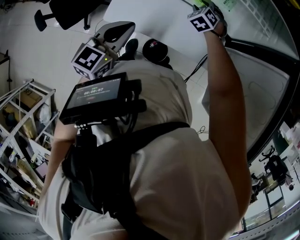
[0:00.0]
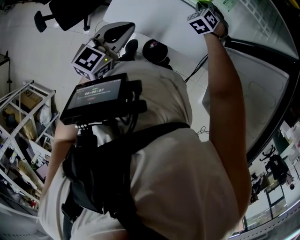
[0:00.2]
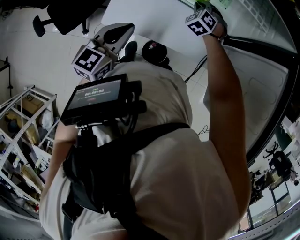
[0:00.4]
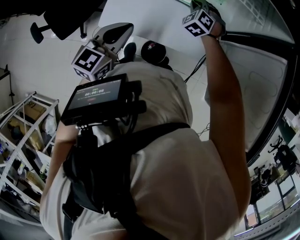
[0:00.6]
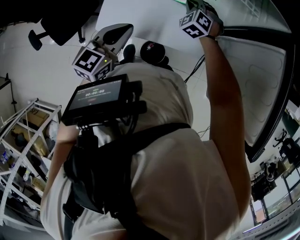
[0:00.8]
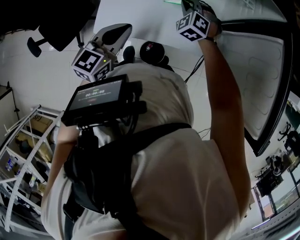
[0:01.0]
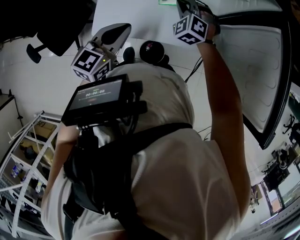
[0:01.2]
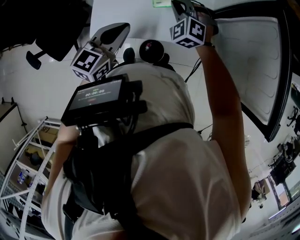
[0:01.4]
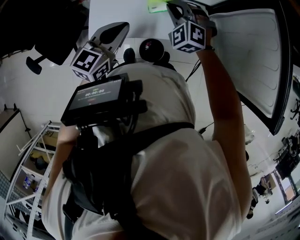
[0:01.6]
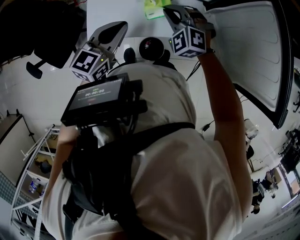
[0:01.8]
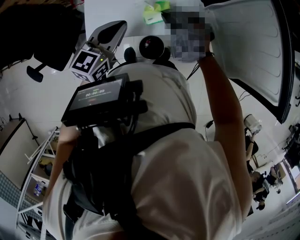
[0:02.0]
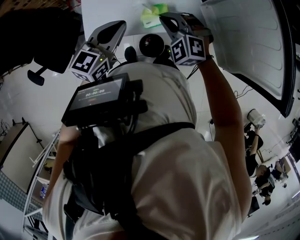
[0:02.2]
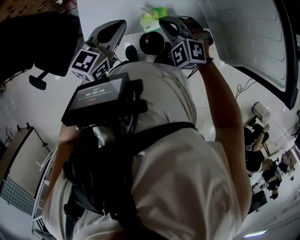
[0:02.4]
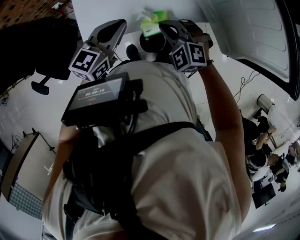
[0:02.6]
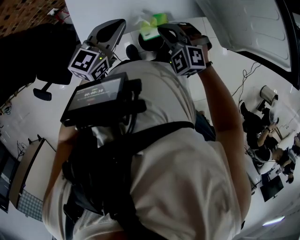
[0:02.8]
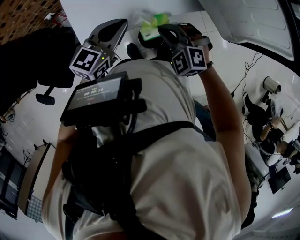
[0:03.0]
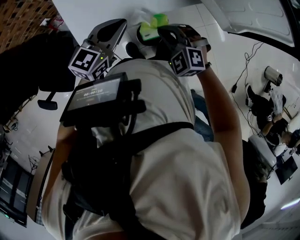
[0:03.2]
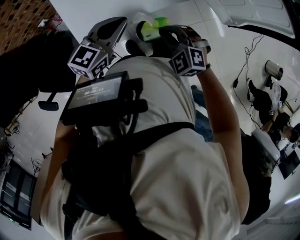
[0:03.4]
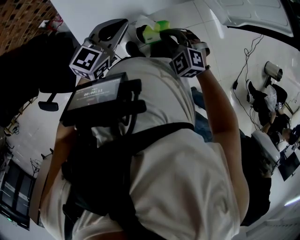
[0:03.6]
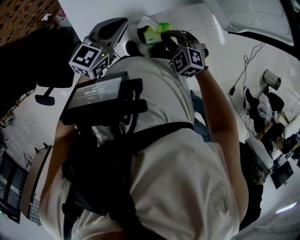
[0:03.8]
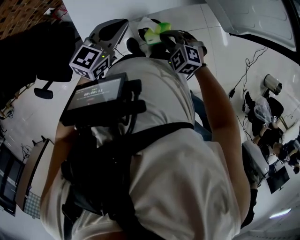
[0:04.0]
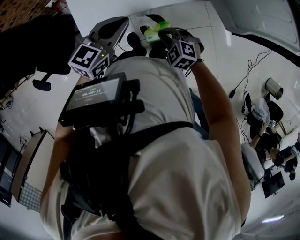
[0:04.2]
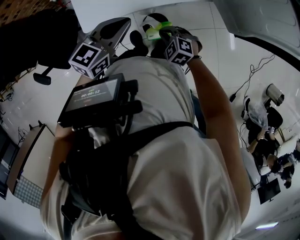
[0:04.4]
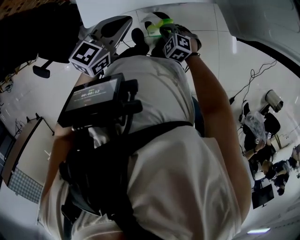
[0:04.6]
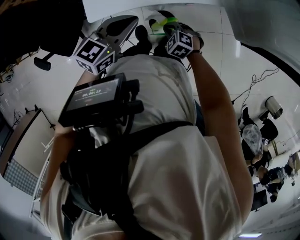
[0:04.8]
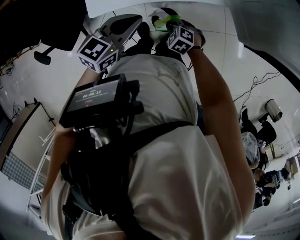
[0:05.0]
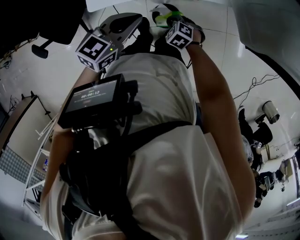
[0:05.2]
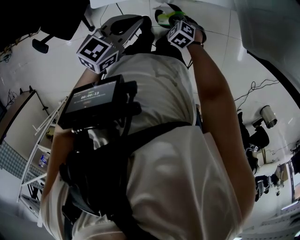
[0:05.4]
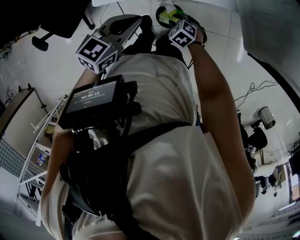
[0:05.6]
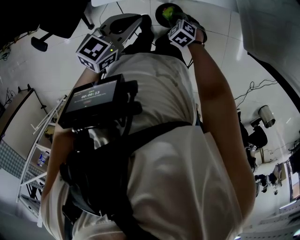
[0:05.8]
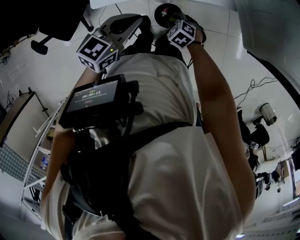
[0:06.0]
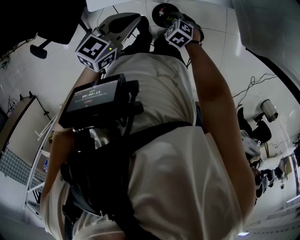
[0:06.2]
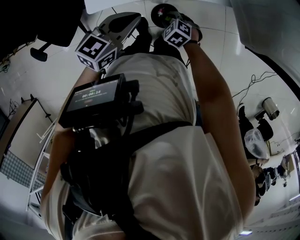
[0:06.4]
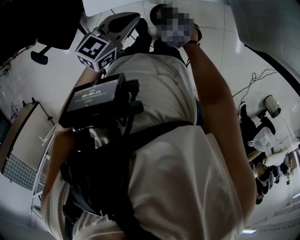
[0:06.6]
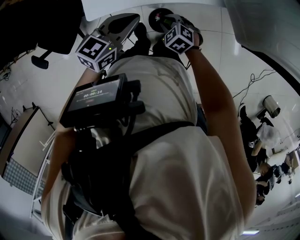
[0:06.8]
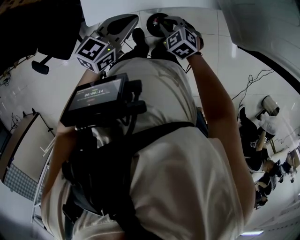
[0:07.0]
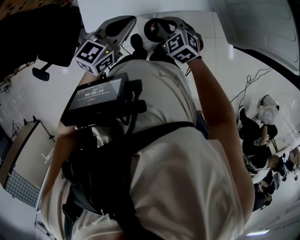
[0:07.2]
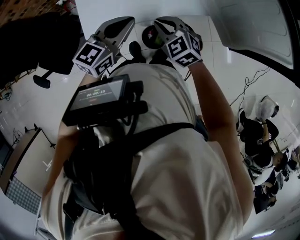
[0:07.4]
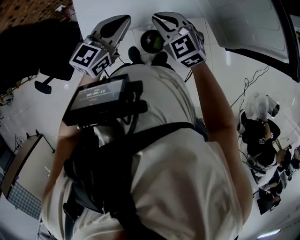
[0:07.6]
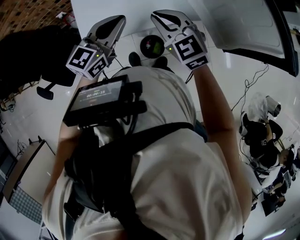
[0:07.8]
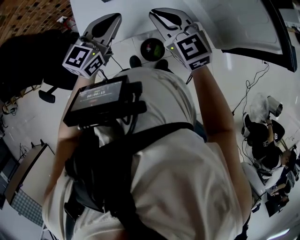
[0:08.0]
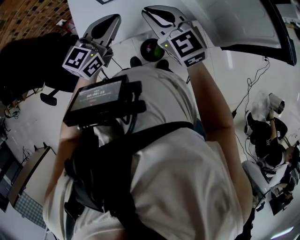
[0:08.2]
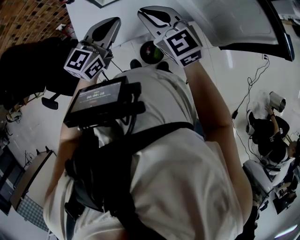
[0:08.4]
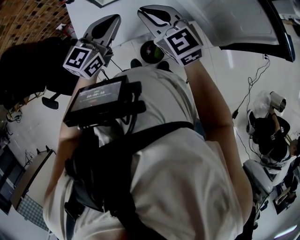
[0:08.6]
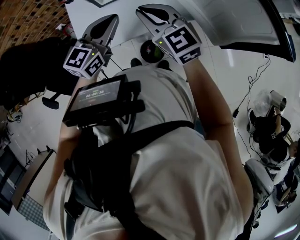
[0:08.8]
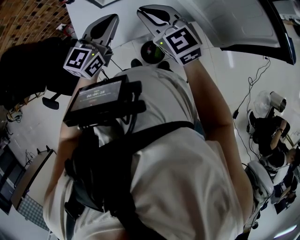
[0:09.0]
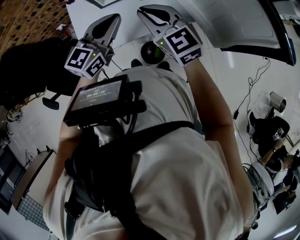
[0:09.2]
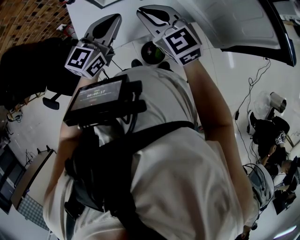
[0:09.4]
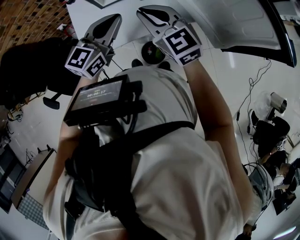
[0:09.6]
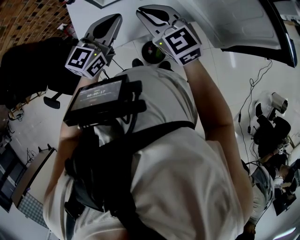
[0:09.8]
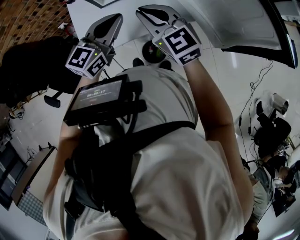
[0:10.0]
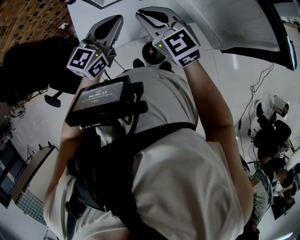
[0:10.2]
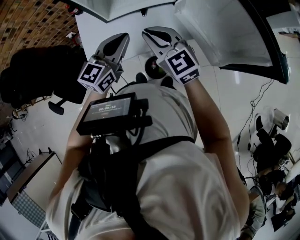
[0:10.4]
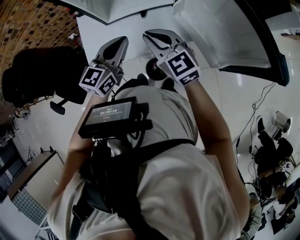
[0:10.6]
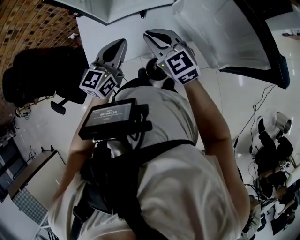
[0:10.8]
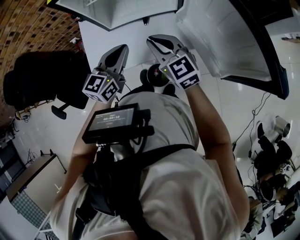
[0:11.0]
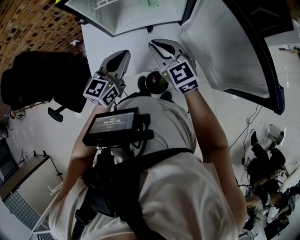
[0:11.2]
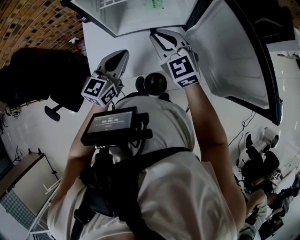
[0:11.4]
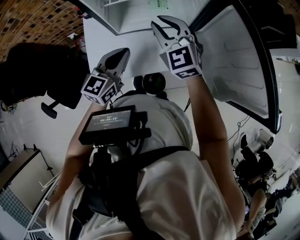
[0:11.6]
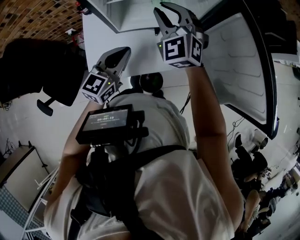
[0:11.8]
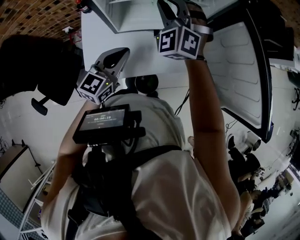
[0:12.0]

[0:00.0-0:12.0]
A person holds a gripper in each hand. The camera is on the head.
0:00.0 to 0:01.6: The right gripper is displaced backward and upward by some 20 cm, and closes up.
0:01.6 to 0:03.0: The right gripper heads backward, covering some 20 cm. Meanwhile the left gripper heads to the right, covering roughly 5 cm, and turns by about 20 degrees.
0:03.0 to 0:04.4: The left gripper moves backward, some 5 cm. Meanwhile the right gripper shifts roughly 15 cm downward and backward, and rotates roughly 20 degrees.
0:04.4 to 0:06.0: The left gripper moves roughly 5 cm; the right gripper travels downward by about 10 cm, and opens.
0:06.0 to 0:07.6: The left gripper shifts some 15 cm forward and upward, while the right gripper travels upward by roughly 30 cm, points its fingers some 30 degrees further upward, and closes its fingers.
0:07.6 to 0:09.0: The left gripper changes place by about 5 cm; the right gripper moves upward, roughly 10 cm.
0:09.0 to 0:10.4: There are only small adjustments of the grippers.
0:10.4 to 0:12.0: The left gripper goes some 10 cm forward and to the left; the right gripper moves forward, approximately 25 cm, and rotates around the line of its fingers by about 50 degrees, counterclockwise from behind.

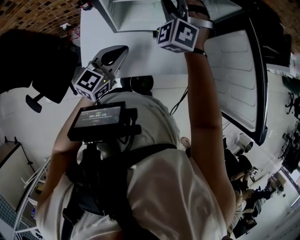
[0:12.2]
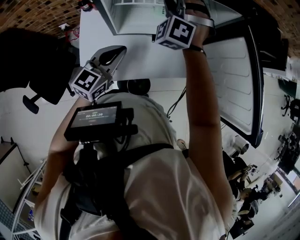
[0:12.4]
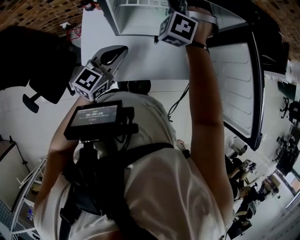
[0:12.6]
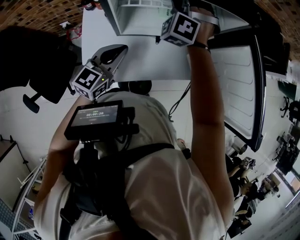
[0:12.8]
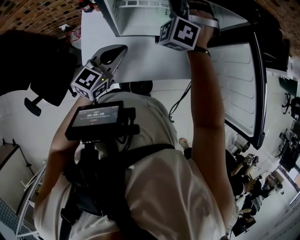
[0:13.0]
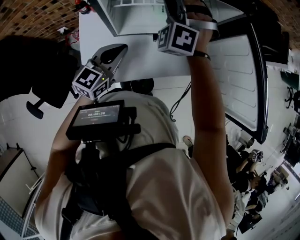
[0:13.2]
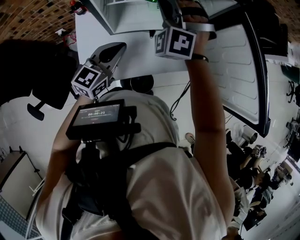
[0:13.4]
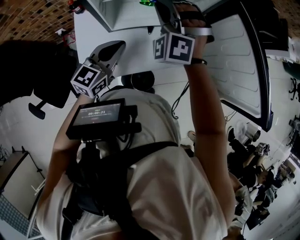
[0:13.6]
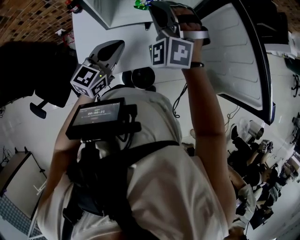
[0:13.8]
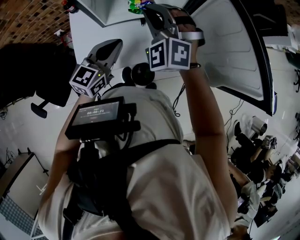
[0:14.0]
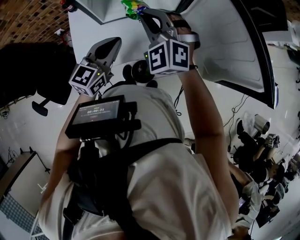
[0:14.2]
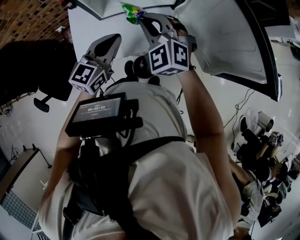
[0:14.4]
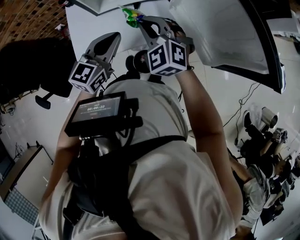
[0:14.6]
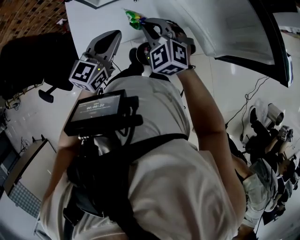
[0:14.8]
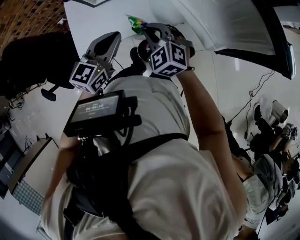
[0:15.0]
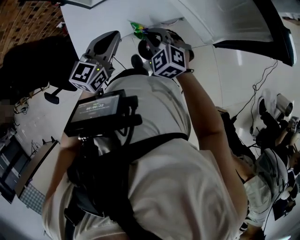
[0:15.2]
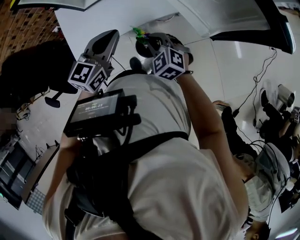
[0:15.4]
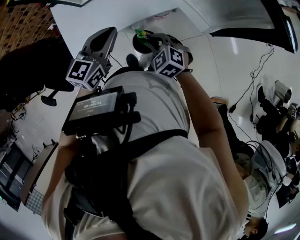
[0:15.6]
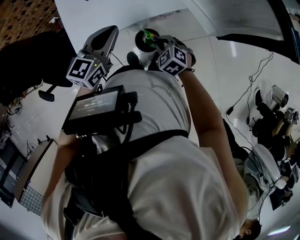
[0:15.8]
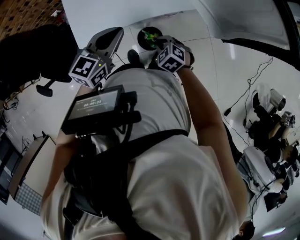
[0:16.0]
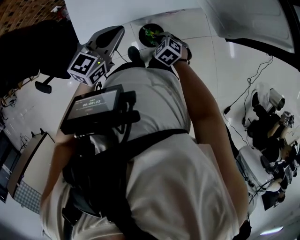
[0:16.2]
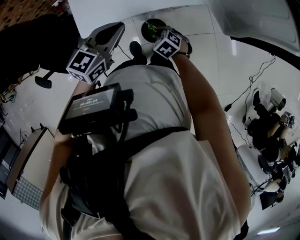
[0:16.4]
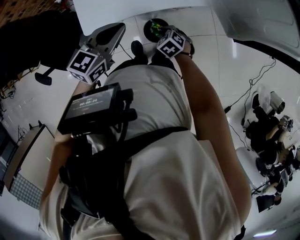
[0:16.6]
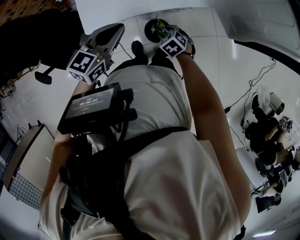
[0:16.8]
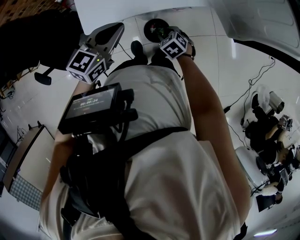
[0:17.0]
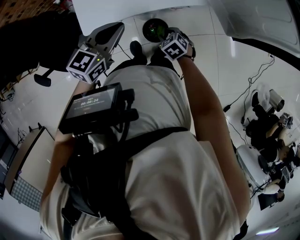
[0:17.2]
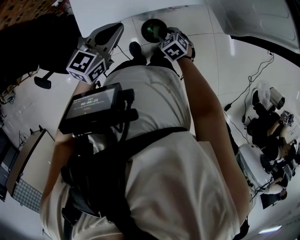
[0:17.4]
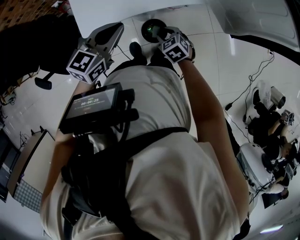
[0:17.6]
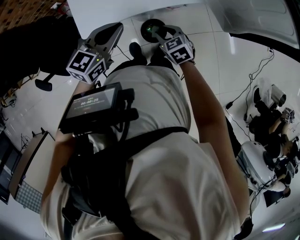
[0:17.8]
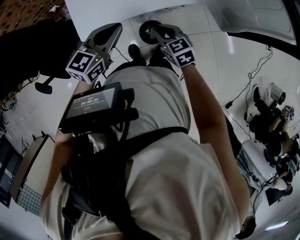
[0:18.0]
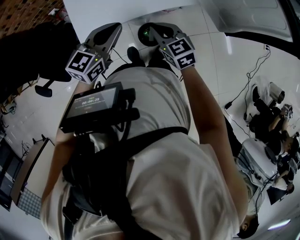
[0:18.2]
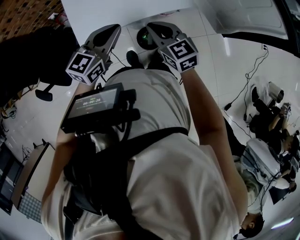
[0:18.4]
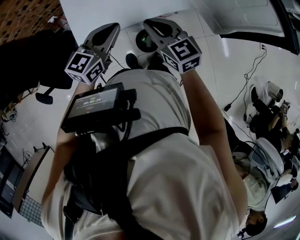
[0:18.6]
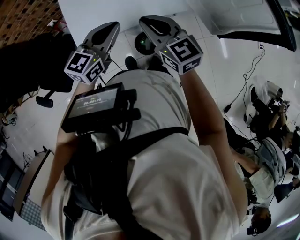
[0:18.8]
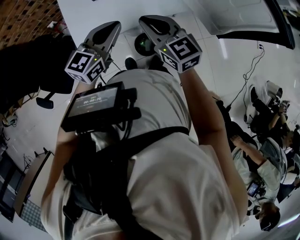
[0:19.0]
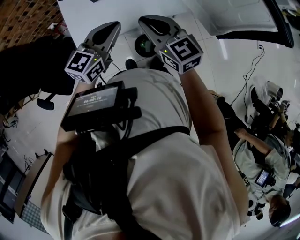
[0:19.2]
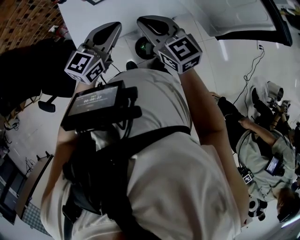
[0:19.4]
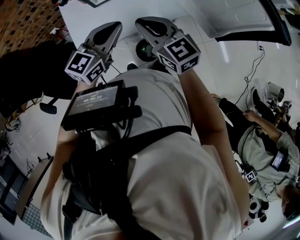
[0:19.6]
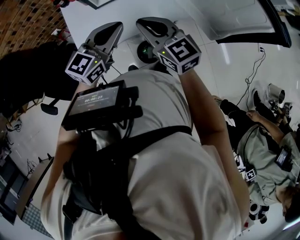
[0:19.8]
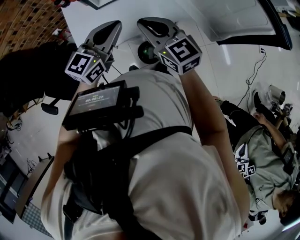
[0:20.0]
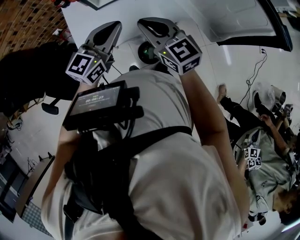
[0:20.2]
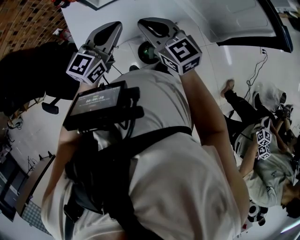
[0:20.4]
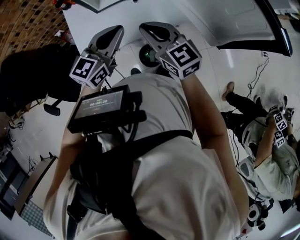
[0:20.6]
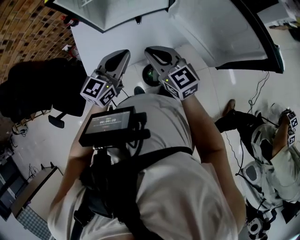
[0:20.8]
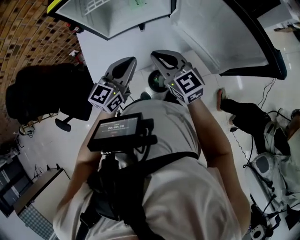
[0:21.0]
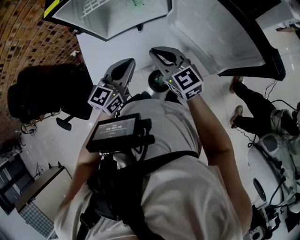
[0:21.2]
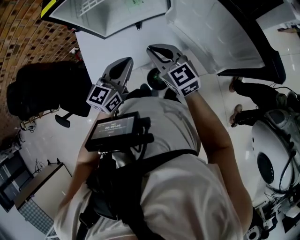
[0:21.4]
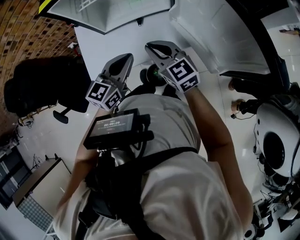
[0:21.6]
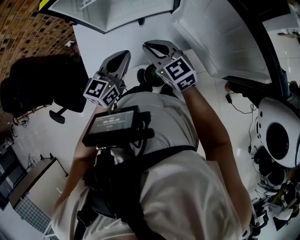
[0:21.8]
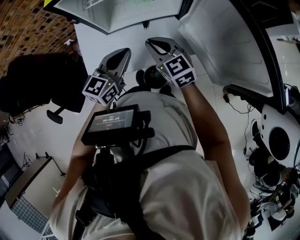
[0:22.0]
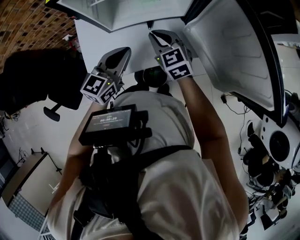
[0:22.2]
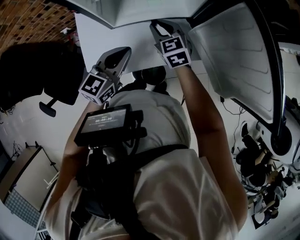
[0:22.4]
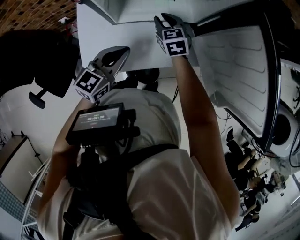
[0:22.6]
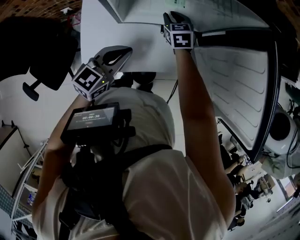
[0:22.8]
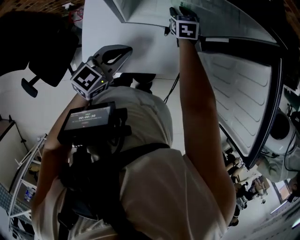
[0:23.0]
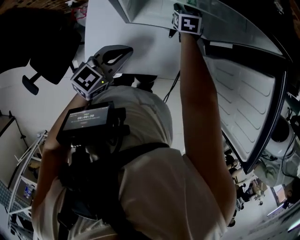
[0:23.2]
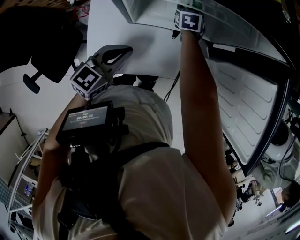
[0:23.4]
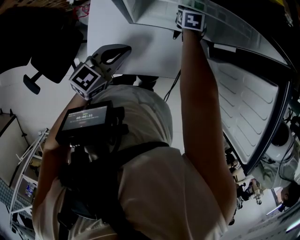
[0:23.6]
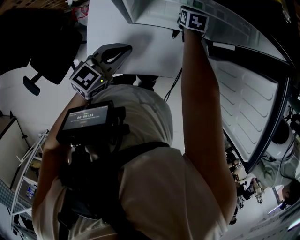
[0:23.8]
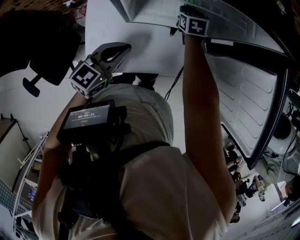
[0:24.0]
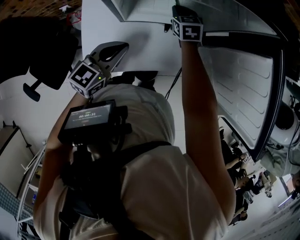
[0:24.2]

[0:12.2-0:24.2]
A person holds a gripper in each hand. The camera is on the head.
0:12.2 to 0:13.8: The right gripper heads backward, covering roughly 10 cm, and closes.
0:13.8 to 0:15.2: The right gripper heads backward, downward and to the right, covering about 30 cm, and rolls clockwise, seen from behind, by some 40 degrees. The left gripper heads backward and to the right, covering about 15 cm.
0:15.2 to 0:16.6: The right gripper is displaced downward by approximately 20 cm, and rotates some 30 degrees. Meanwhile the left gripper shifts roughly 10 cm to the left.
0:16.6 to 0:18.2: The right gripper heads upward, covering some 15 cm, angles its fingers upward, by approximately 30 degrees, and opens and closes again.
0:18.2 to 0:19.8: The right gripper is displaced upward by approximately 15 cm, and rotates some 20 degrees; the left gripper moves upward, some 10 cm.
0:19.8 to 0:21.2: The right gripper travels to the right and forward by some 10 cm, while the left gripper ends up about 5 cm from where it was.
0:21.2 to 0:22.6: The right gripper heads forward and downward, covering roughly 25 cm, and changes its angle by approximately 30 degrees, while the left gripper is displaced forward and to the left by about 15 cm.
0:22.6 to 0:24.2: The left gripper moves to the left, roughly 5 cm. Meanwhile the right gripper shifts some 5 cm forward.
